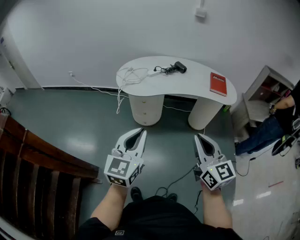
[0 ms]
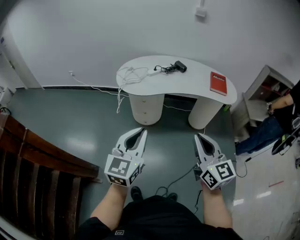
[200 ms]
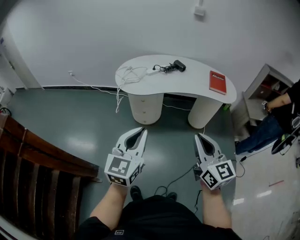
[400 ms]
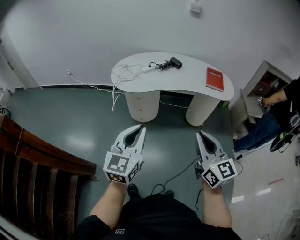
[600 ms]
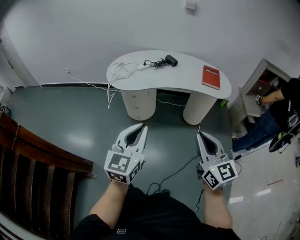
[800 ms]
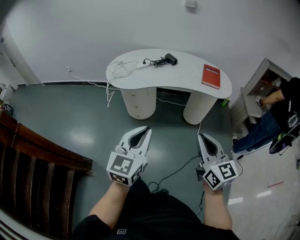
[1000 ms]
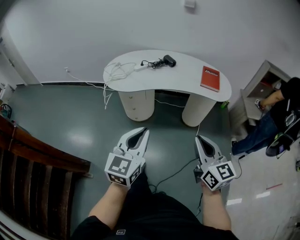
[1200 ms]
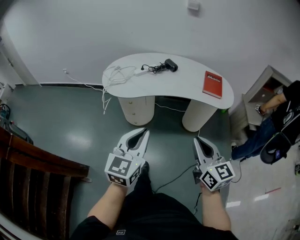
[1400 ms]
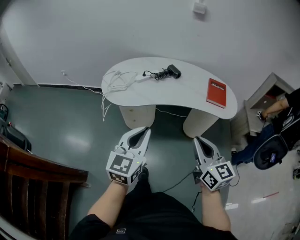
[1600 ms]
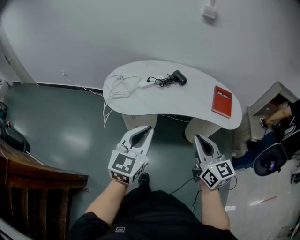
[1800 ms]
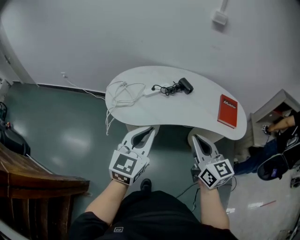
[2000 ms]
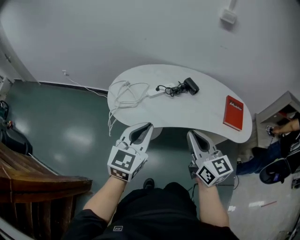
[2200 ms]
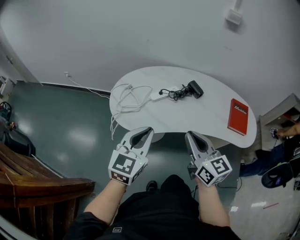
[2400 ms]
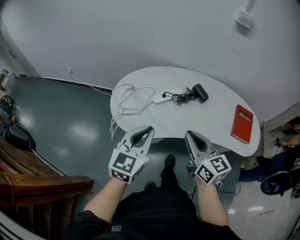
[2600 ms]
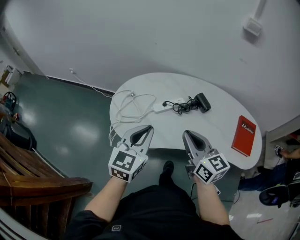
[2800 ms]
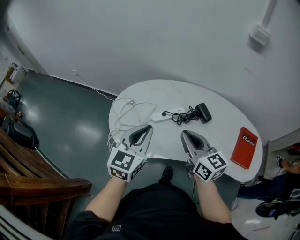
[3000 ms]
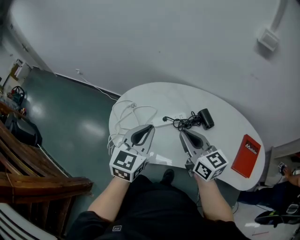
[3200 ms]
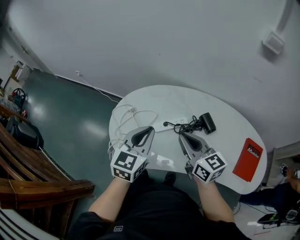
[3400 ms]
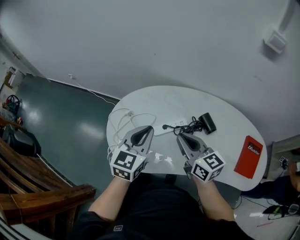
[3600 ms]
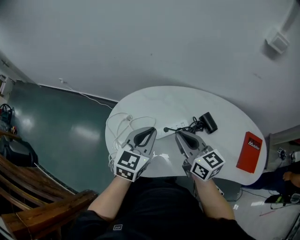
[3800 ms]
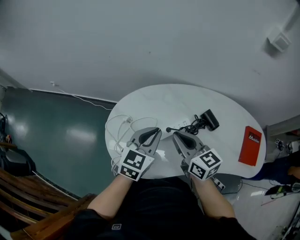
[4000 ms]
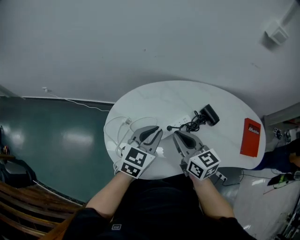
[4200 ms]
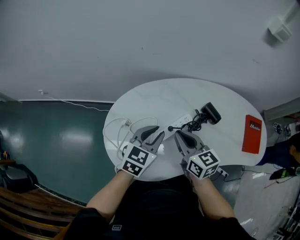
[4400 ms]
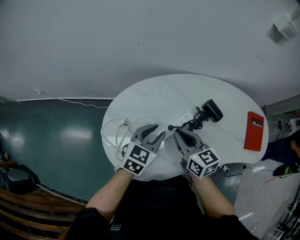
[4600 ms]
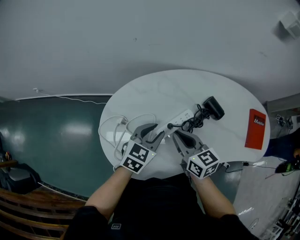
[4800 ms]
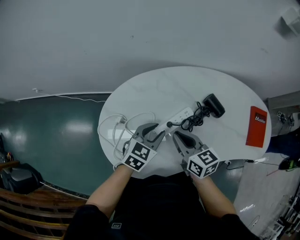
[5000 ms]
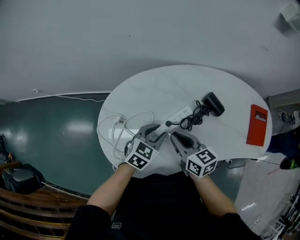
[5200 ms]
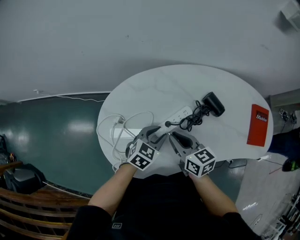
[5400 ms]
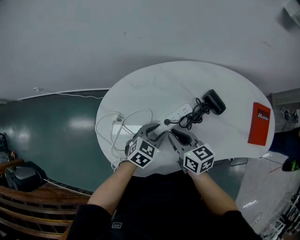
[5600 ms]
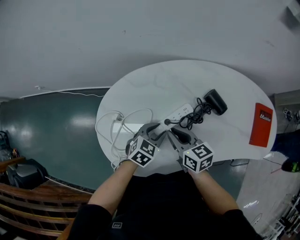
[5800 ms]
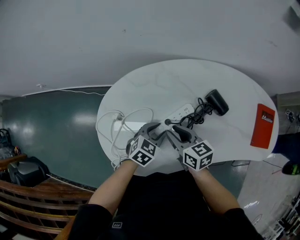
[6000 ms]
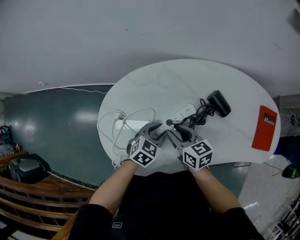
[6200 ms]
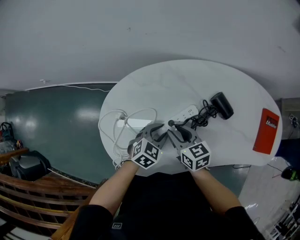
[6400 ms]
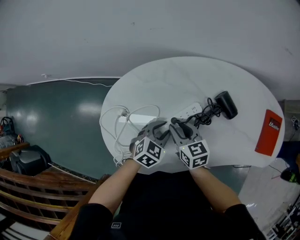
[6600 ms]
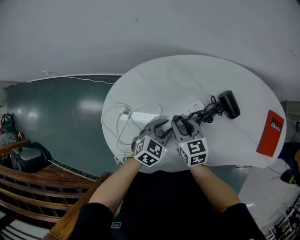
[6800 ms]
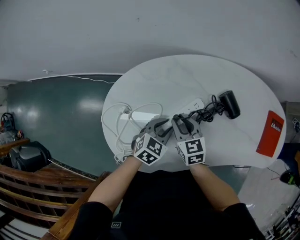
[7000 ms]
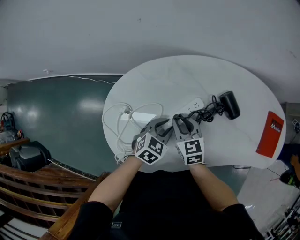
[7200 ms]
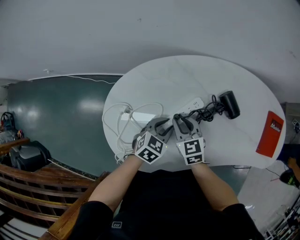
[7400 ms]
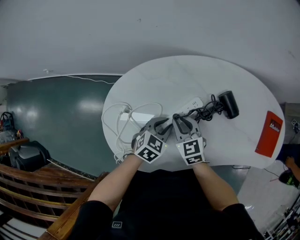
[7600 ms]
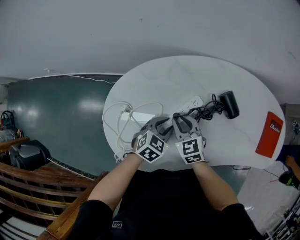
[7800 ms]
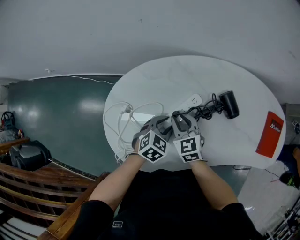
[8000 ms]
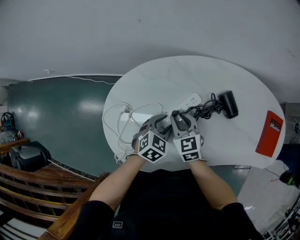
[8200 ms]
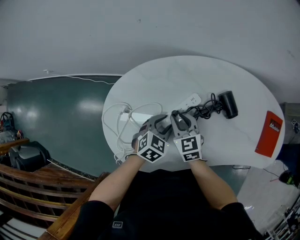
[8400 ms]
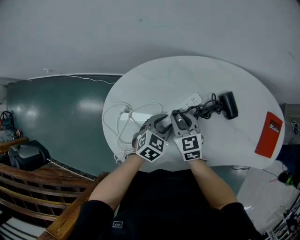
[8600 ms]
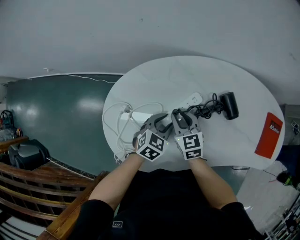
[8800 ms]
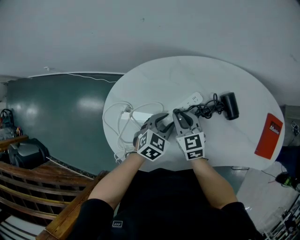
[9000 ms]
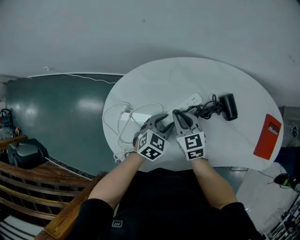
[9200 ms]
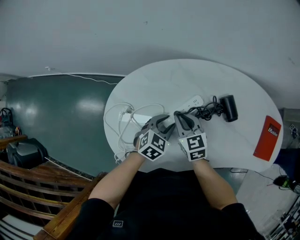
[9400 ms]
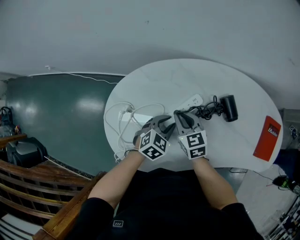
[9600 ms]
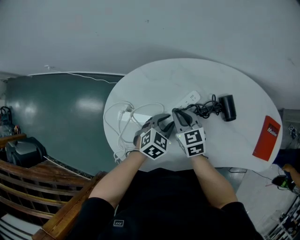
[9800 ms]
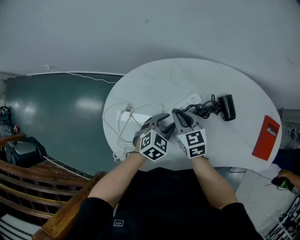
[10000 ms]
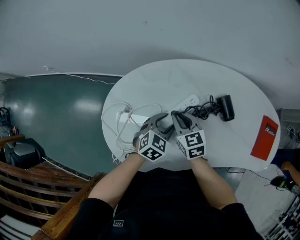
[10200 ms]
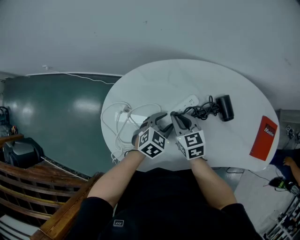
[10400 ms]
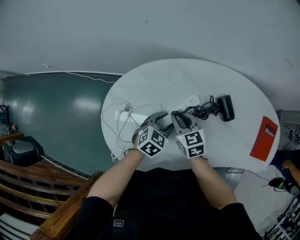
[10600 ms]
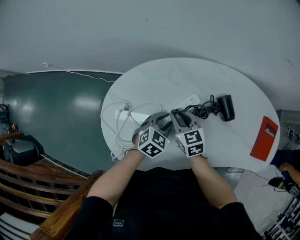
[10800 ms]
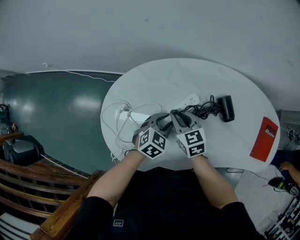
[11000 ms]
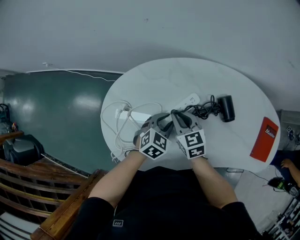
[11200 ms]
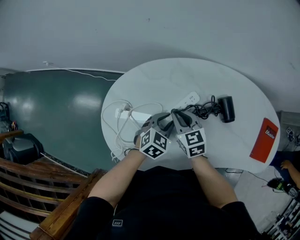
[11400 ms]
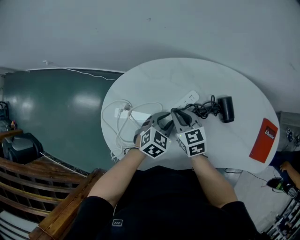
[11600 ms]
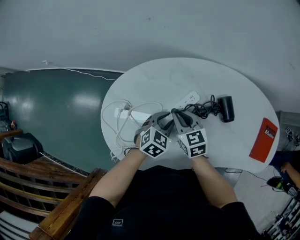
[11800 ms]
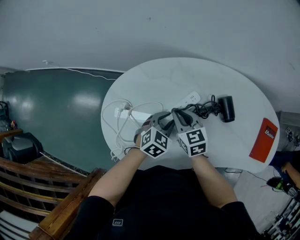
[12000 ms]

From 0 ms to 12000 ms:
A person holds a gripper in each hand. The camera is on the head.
From 0 ms to 1600 ms: Both grippers travel together forward and to the right, some 20 cm.
From 1600 ms to 3000 ms: The two grippers travel together, forward, about 40 cm. The right gripper changes its angle by about 20 degrees.
From 3000 ms to 4400 ms: The left gripper ends up some 20 cm from where it was, and swivels some 30 degrees. The right gripper ends up about 20 cm from where it was, and swivels about 20 degrees.
From 4400 ms to 6000 ms: The grippers both shift downward by some 15 cm. The left gripper changes its angle by roughly 20 degrees.
From 6000 ms to 7600 ms: The right gripper ends up approximately 5 cm from where it was, and swivels approximately 30 degrees.
From 7600 ms to 12000 ms: The grippers make only small movements.

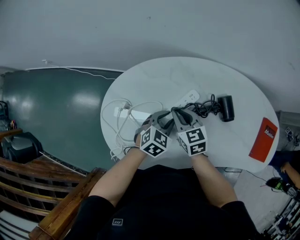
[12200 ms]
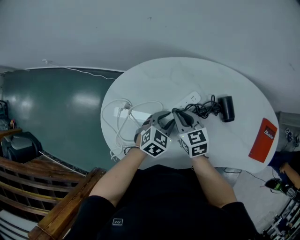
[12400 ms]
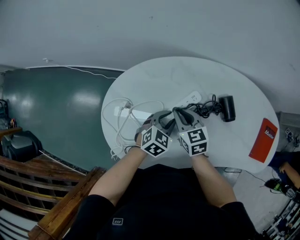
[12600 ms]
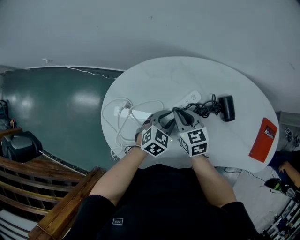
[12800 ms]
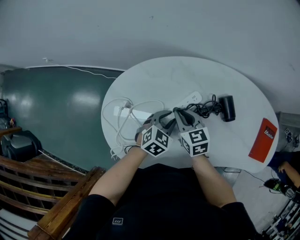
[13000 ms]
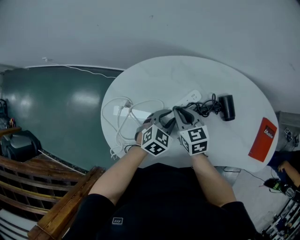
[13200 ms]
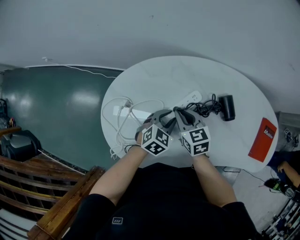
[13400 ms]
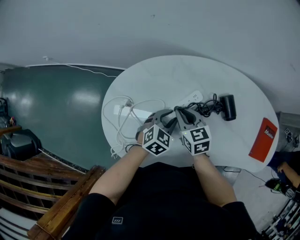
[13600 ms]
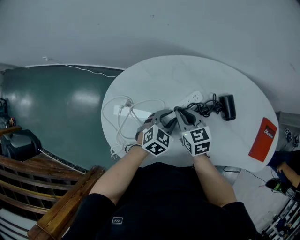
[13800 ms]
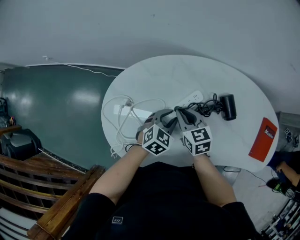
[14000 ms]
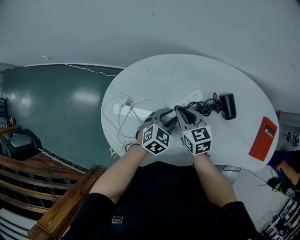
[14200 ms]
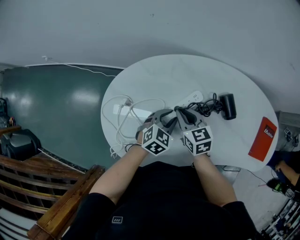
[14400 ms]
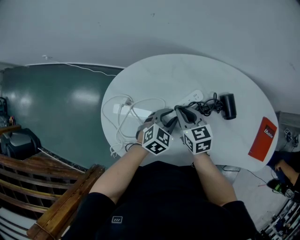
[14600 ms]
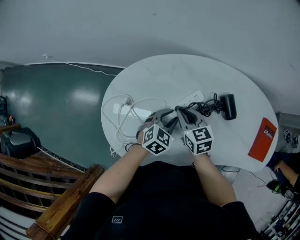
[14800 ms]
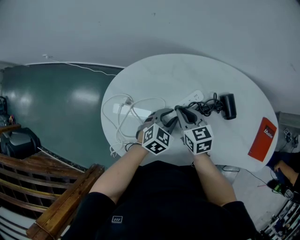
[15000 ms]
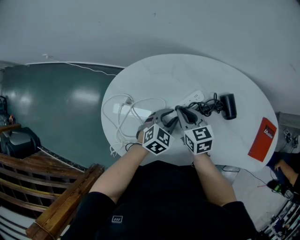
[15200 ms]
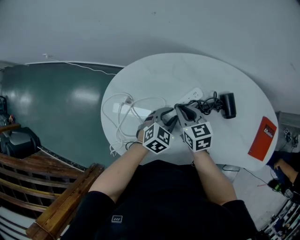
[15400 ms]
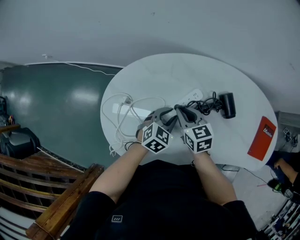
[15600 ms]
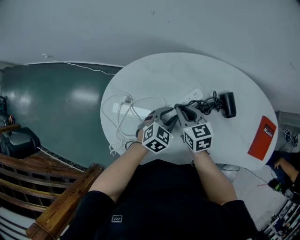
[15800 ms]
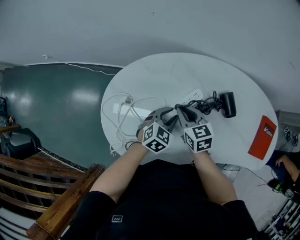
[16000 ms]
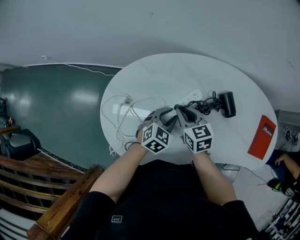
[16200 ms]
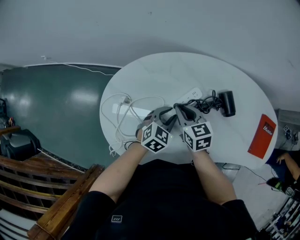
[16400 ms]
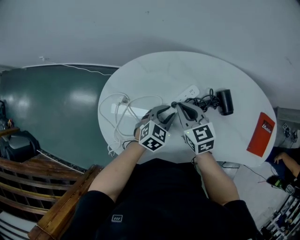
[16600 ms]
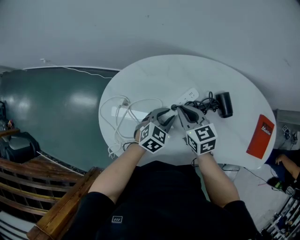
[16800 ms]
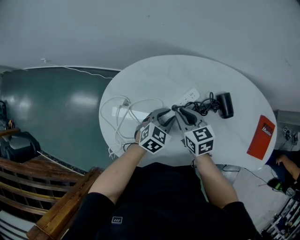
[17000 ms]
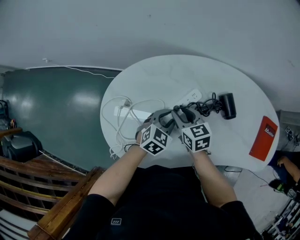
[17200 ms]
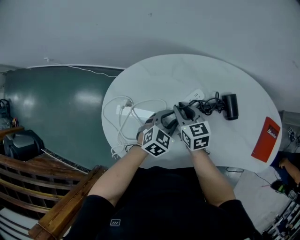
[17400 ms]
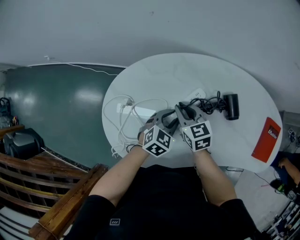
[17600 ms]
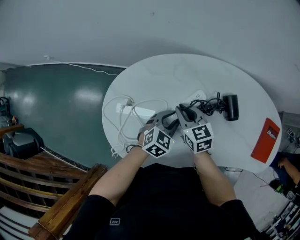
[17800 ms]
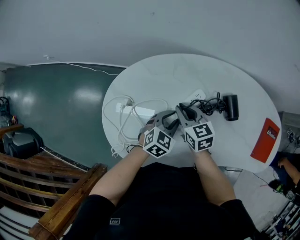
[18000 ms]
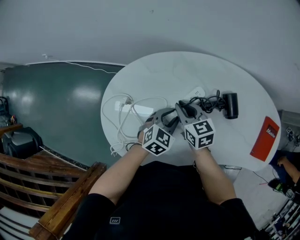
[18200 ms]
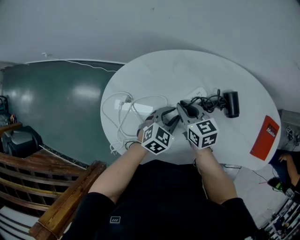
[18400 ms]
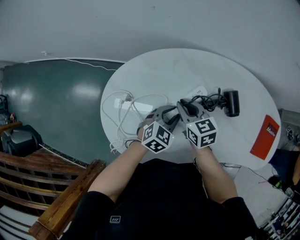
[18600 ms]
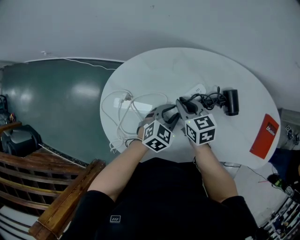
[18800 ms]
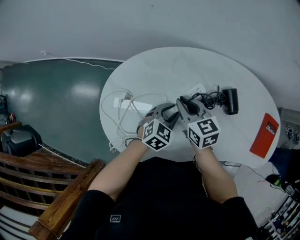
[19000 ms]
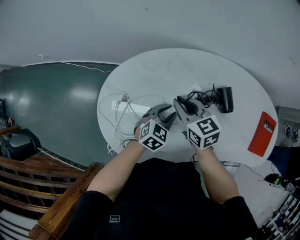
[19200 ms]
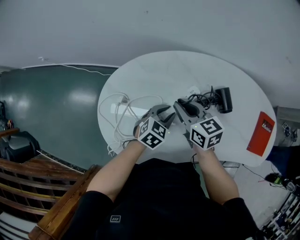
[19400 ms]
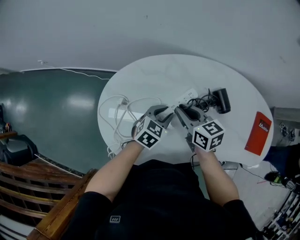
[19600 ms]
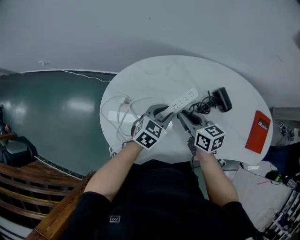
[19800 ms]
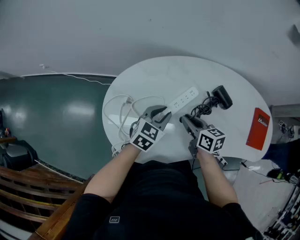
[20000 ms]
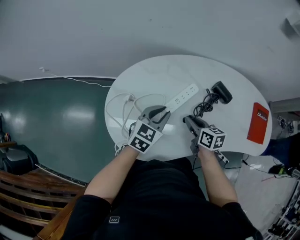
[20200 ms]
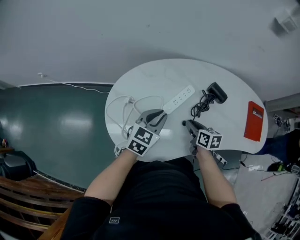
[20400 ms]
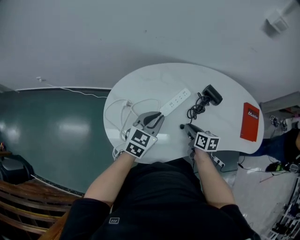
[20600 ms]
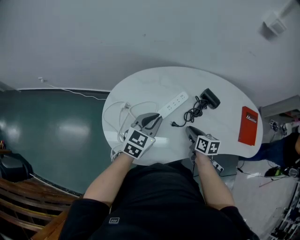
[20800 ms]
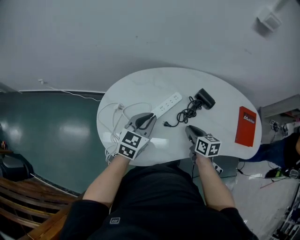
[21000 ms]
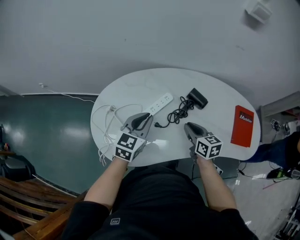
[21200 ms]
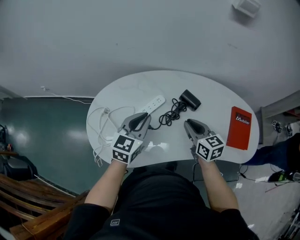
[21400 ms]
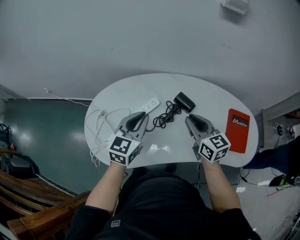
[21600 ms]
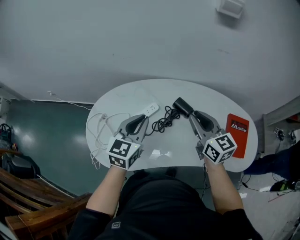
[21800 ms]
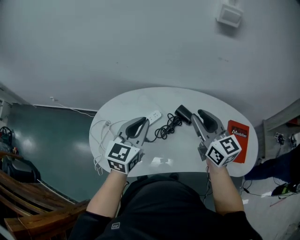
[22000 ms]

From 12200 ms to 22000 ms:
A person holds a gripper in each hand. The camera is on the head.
From 12200 ms to 13600 ms: Both grippers stay about where they are.
From 13600 ms to 16400 ms: Both grippers stay about where they are.
From 16400 ms to 19200 ms: There are only small adjustments of the grippers.
From 19200 ms to 20600 ms: The right gripper goes roughly 20 cm backward, to the right and downward, and swivels about 40 degrees, while the left gripper is displaced upward, to the left and backward by approximately 15 cm.
From 20600 ms to 22000 ms: The right gripper is displaced upward and to the right by roughly 35 cm, and tilts its fingers roughly 40 degrees upward, while the left gripper shifts approximately 20 cm upward and to the right.

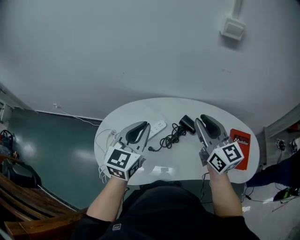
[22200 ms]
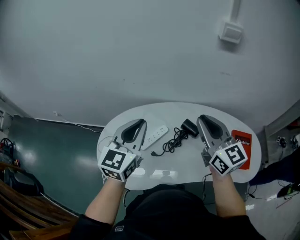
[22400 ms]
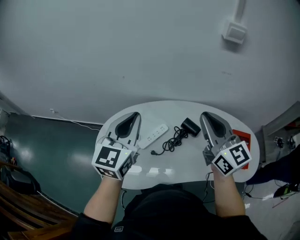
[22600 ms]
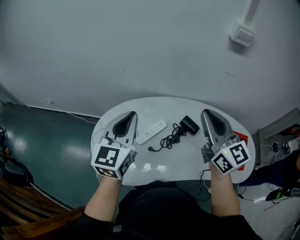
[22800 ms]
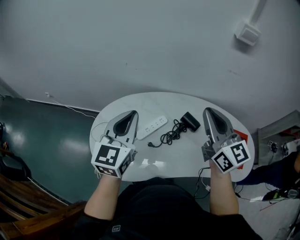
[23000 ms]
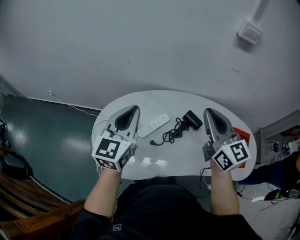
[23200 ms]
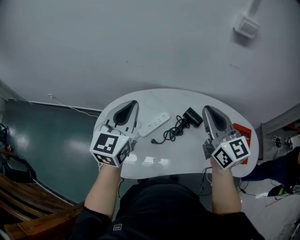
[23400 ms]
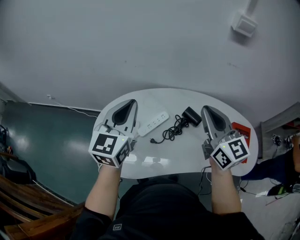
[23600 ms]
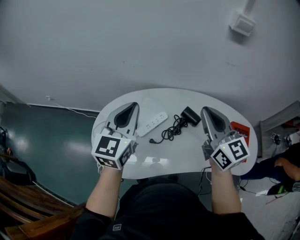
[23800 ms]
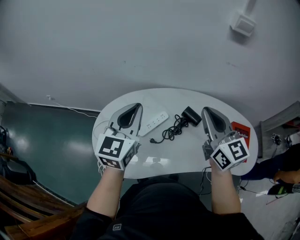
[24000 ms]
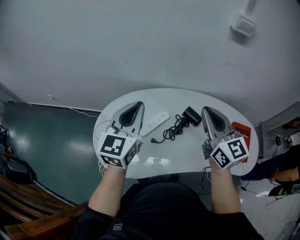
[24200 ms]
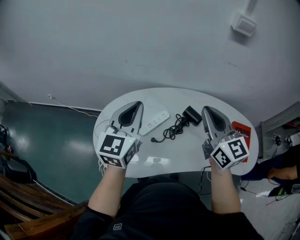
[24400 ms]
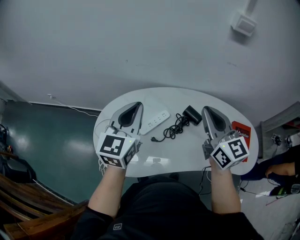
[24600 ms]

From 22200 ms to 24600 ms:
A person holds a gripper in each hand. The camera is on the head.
From 22200 ms to 23400 ms: The left gripper heads to the left, covering some 5 cm.
From 23400 ms to 24600 ms: There are only small adjustments of the grippers.
